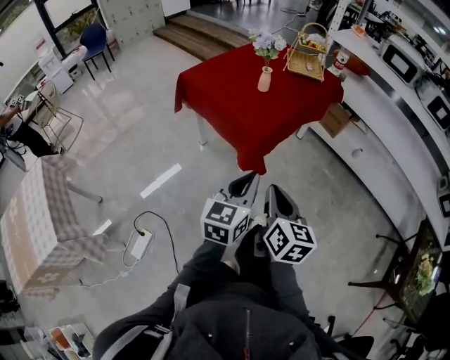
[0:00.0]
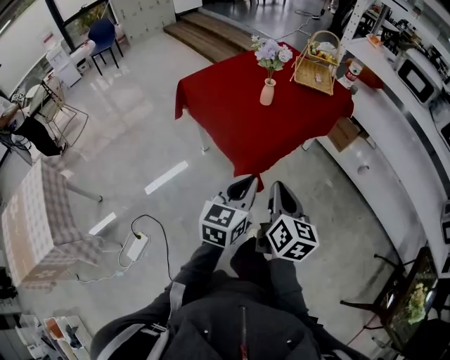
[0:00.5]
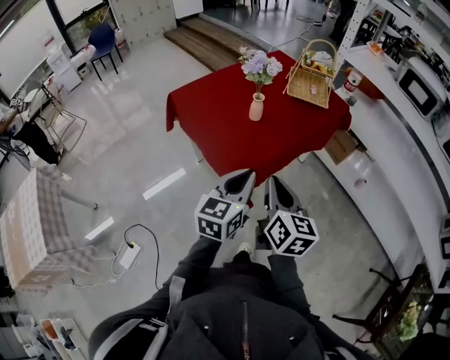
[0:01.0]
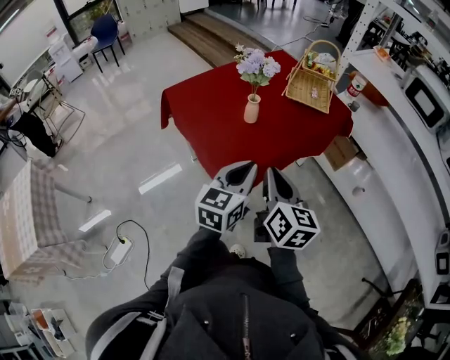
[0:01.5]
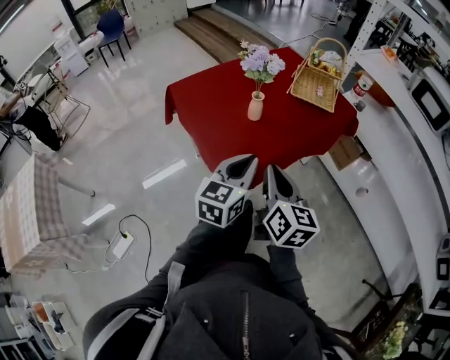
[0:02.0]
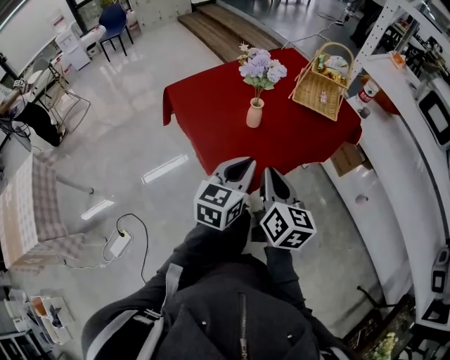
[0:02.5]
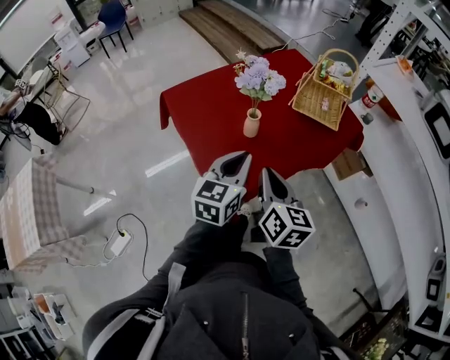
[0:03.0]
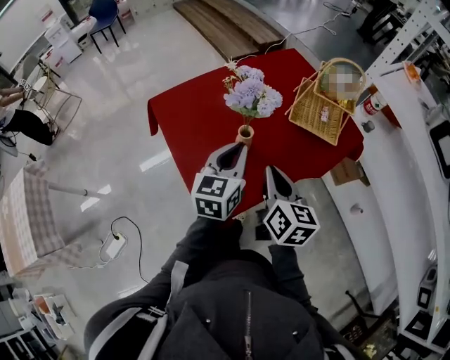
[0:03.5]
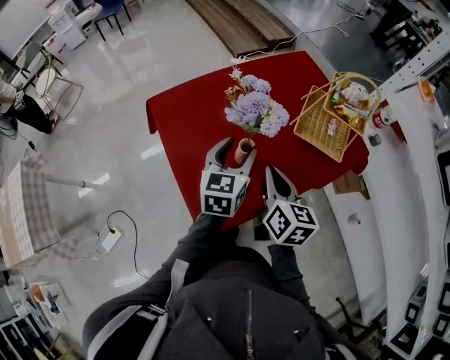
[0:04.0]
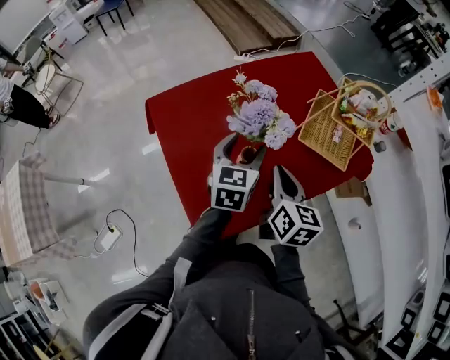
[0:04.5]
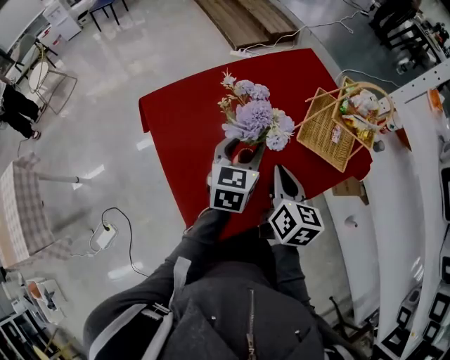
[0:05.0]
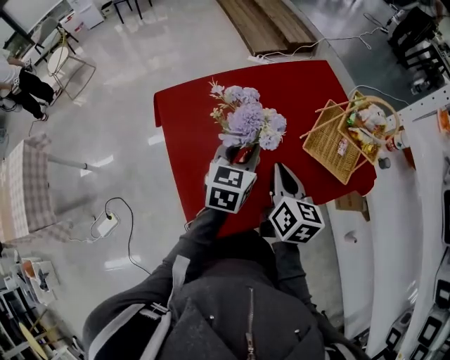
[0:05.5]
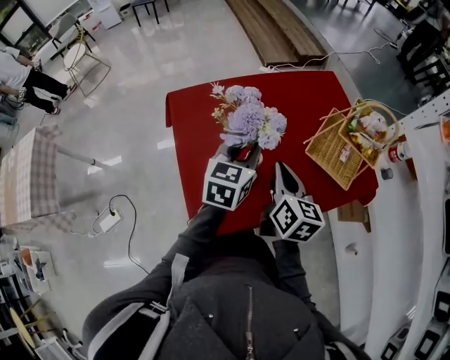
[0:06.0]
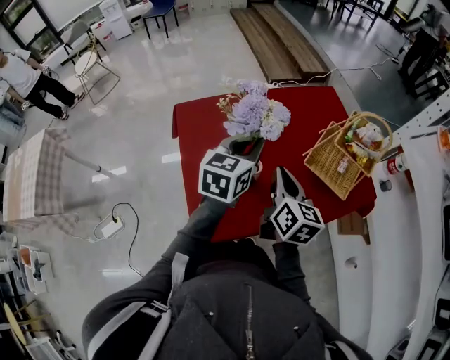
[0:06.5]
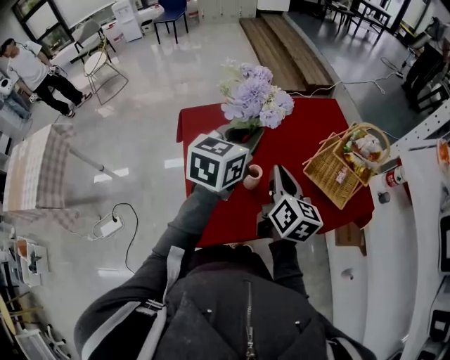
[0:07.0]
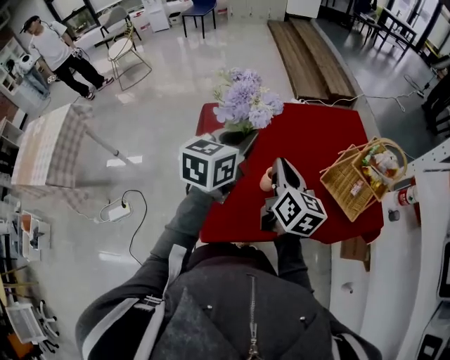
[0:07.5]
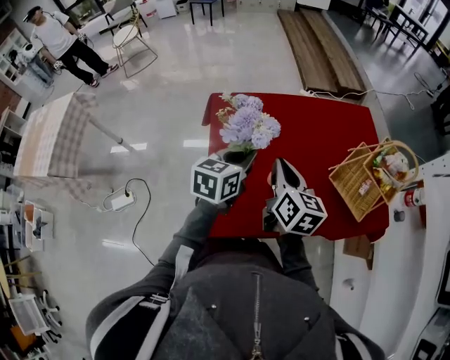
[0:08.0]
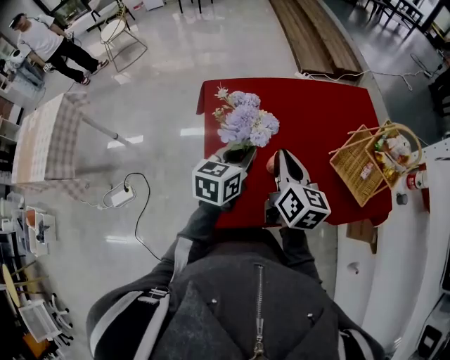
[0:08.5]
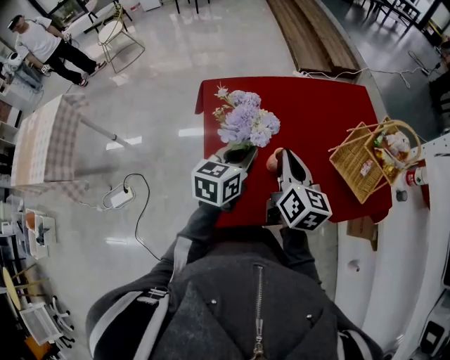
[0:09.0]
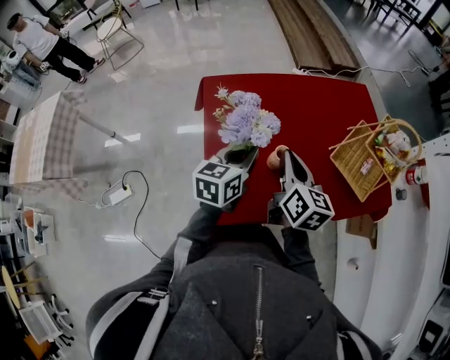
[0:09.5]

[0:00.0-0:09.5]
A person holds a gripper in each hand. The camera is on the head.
0.0 to 2.0 s: The two grippers go roughly 25 cm forward.
2.0 to 4.0 s: Both grippers travel together forward, roughly 25 cm. The left gripper opens up.
4.0 to 5.5 s: The left gripper changes place by some 5 cm, and closes, while the right gripper heads forward, covering roughly 5 cm.
5.5 to 7.5 s: The right gripper moves to the left and upward, roughly 10 cm, while the left gripper travels upward and to the left by some 15 cm.
7.5 to 9.5 s: The left gripper shifts some 15 cm downward.

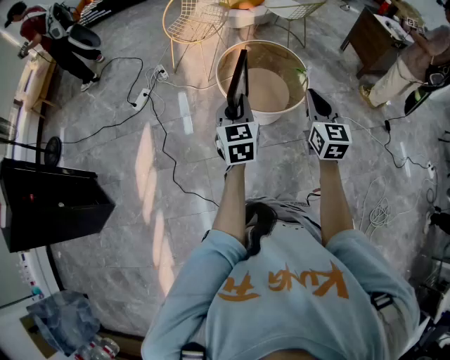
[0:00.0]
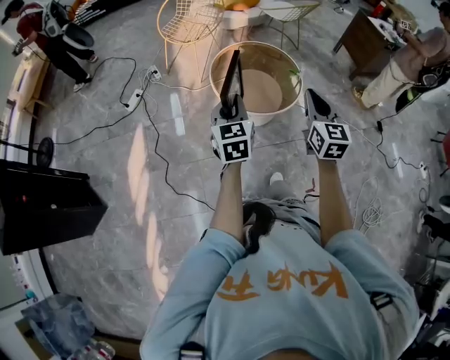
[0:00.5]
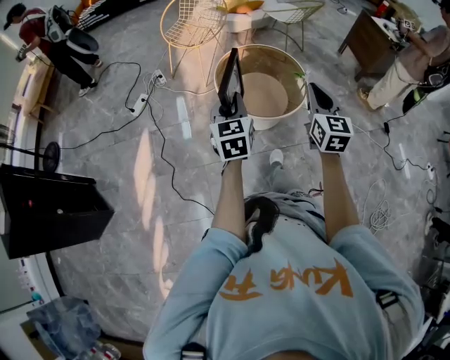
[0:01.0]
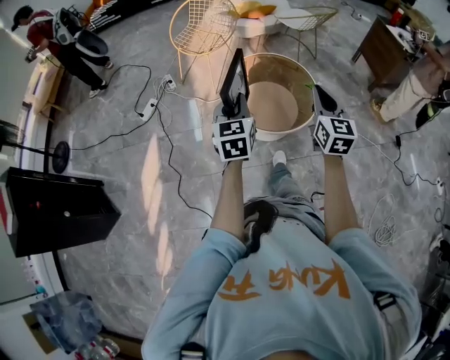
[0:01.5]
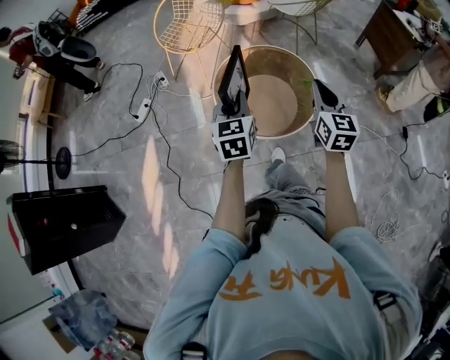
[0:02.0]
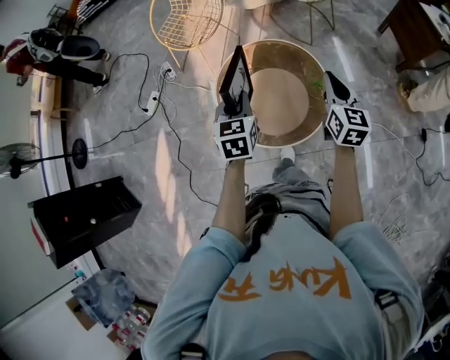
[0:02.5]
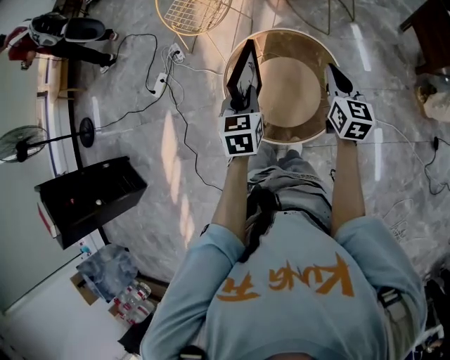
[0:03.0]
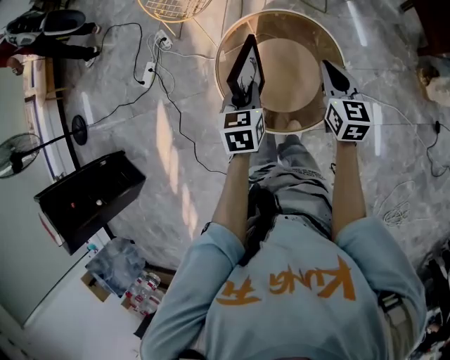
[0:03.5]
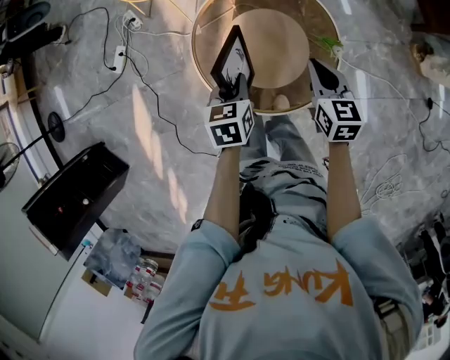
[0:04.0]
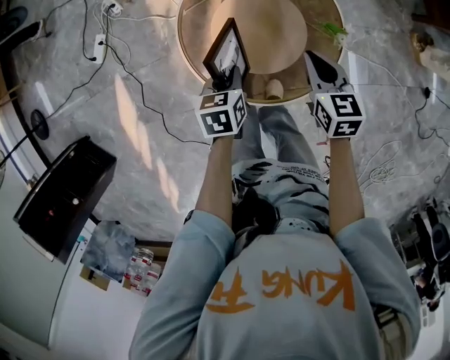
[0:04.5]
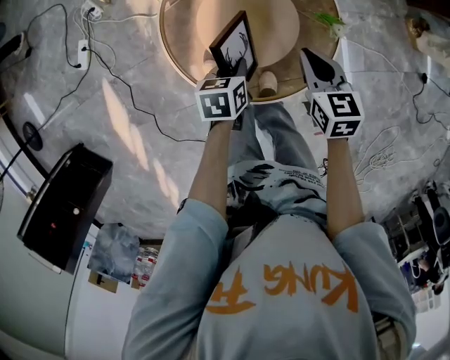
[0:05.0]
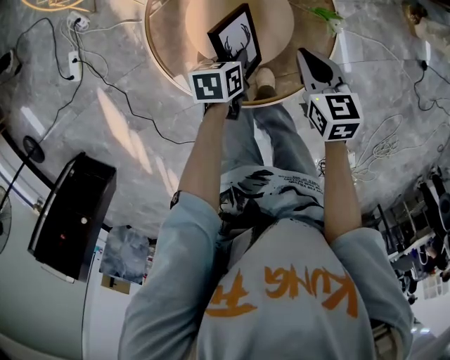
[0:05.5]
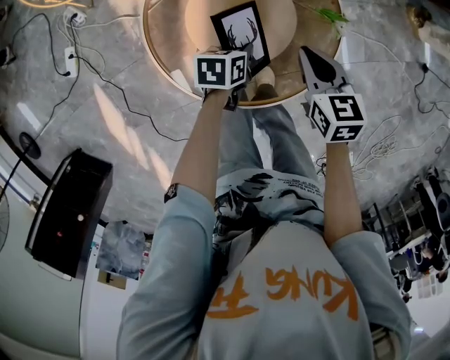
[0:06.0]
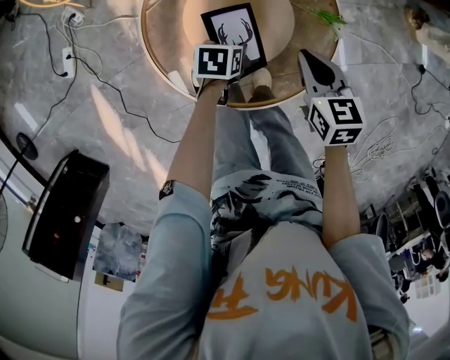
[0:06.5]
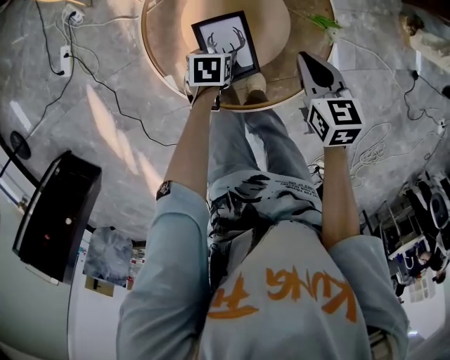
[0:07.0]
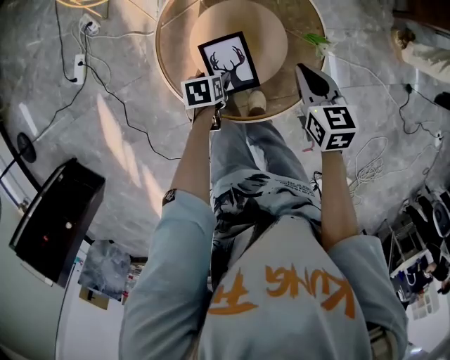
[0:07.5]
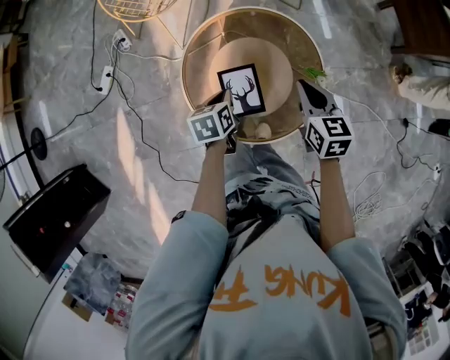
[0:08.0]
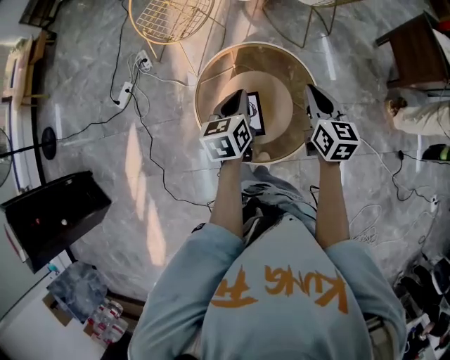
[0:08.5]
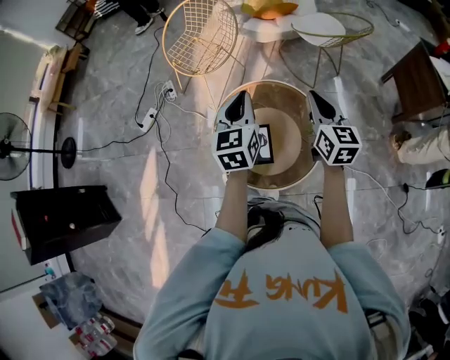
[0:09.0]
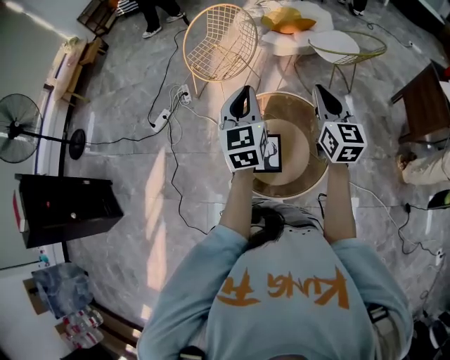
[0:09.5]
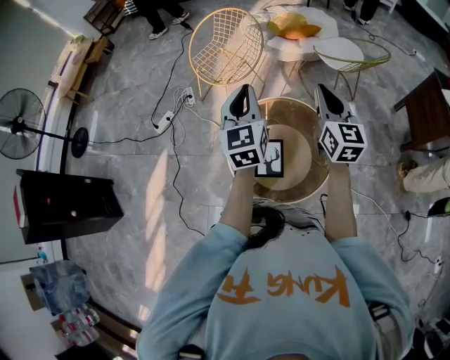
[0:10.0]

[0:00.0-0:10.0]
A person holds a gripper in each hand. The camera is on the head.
0.0 to 2.0 s: The grippers both shift forward by some 25 cm.
2.0 to 4.0 s: The two grippers go some 30 cm downward and forward. The left gripper changes its angle by some 30 degrees, while the right gripper changes its angle by about 30 degrees.
4.0 to 6.0 s: The left gripper is displaced downward by some 25 cm, and rotates roughly 30 degrees. Meanwhile the right gripper goes roughly 15 cm downward.
6.0 to 8.0 s: The left gripper travels upward and to the left by roughly 20 cm, rotates about 30 degrees, and opens, then closes once more. The right gripper goes some 15 cm upward.
8.0 to 10.0 s: The two grippers go approximately 35 cm upward. The right gripper tilts its fingers about 30 degrees upward; the left gripper angles its fingers upward, by approximately 50 degrees.

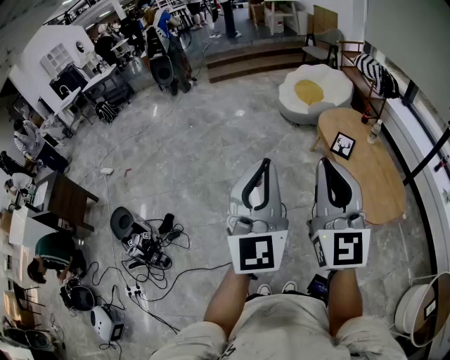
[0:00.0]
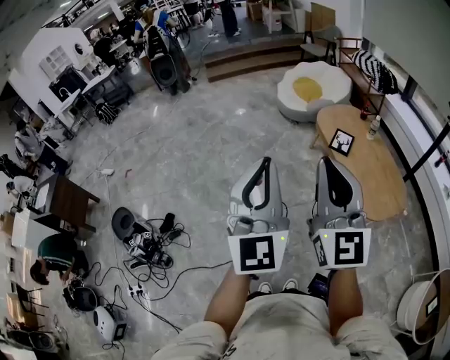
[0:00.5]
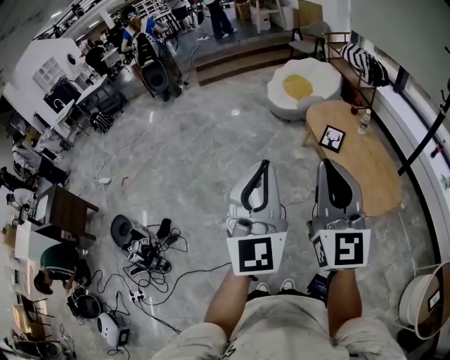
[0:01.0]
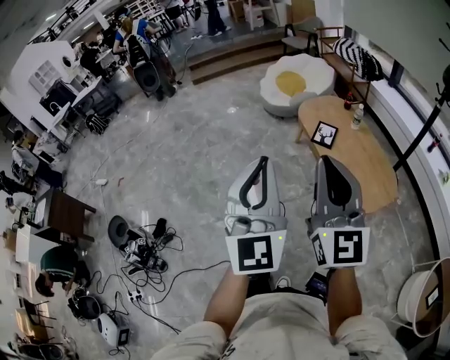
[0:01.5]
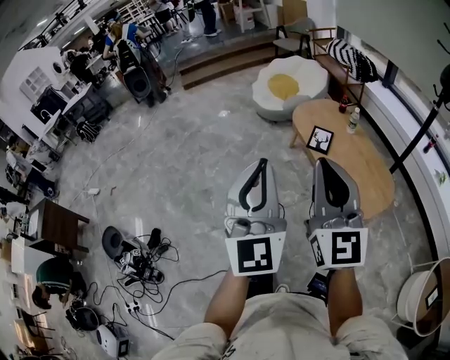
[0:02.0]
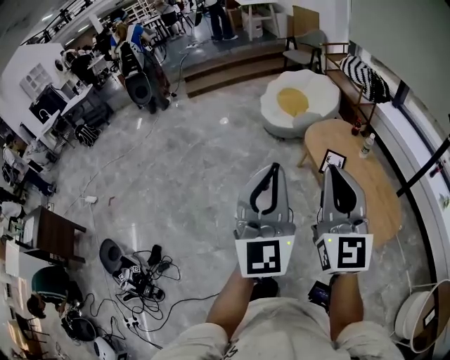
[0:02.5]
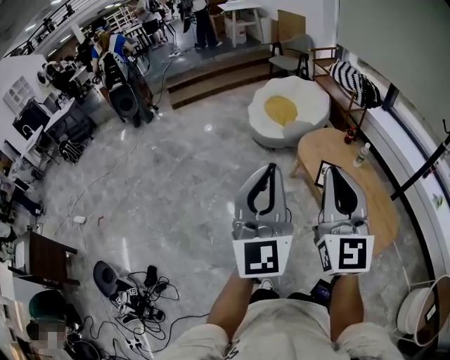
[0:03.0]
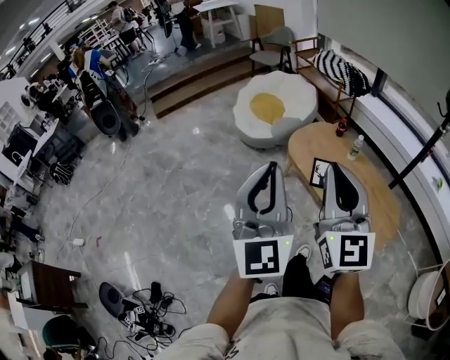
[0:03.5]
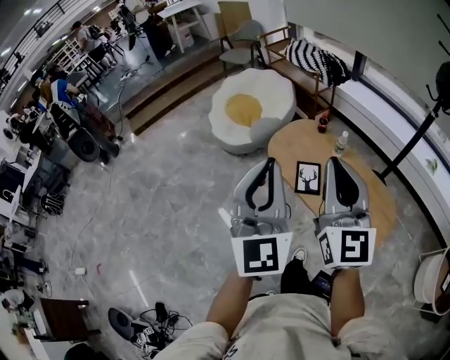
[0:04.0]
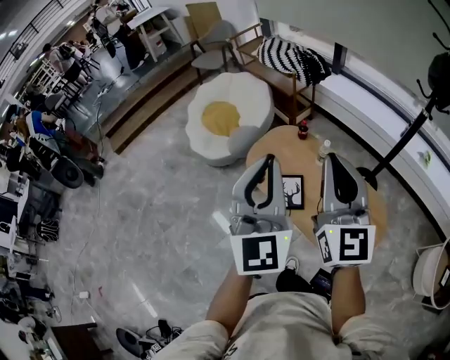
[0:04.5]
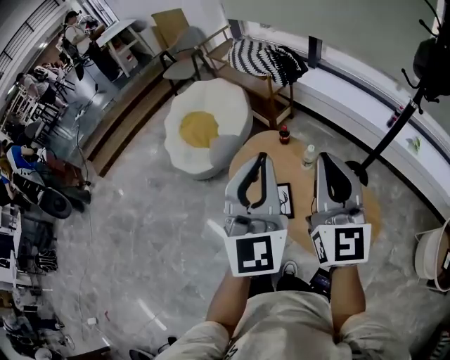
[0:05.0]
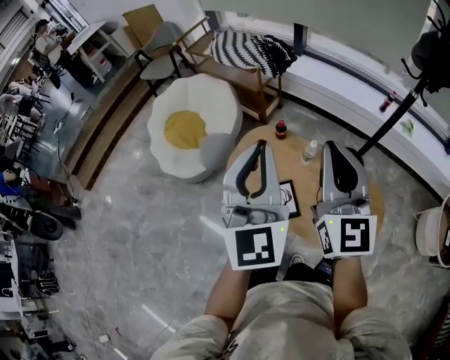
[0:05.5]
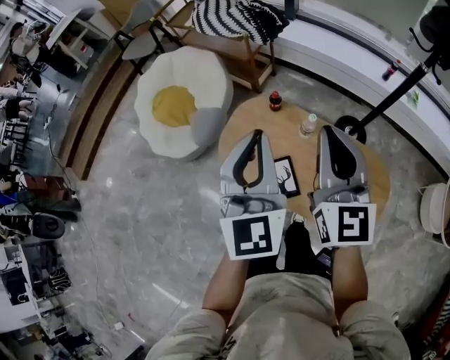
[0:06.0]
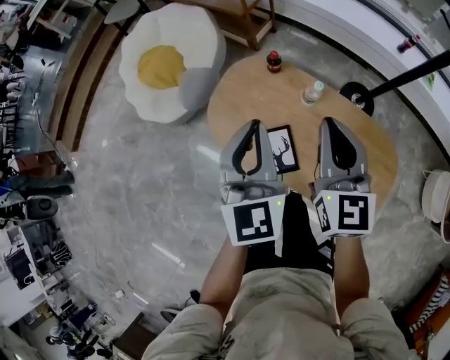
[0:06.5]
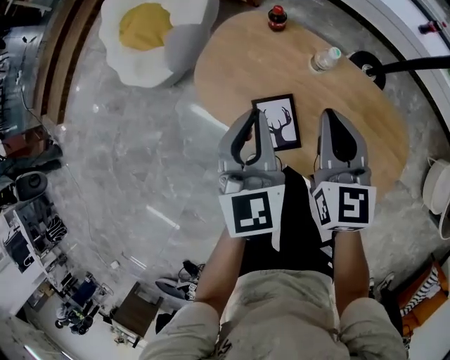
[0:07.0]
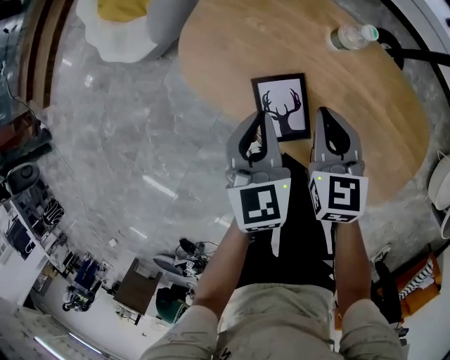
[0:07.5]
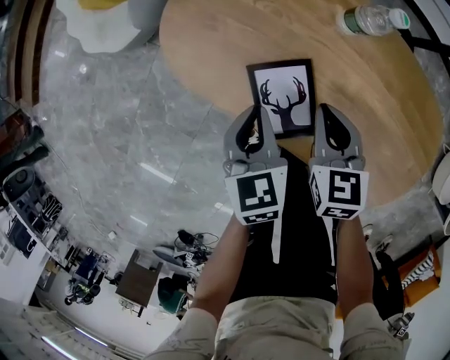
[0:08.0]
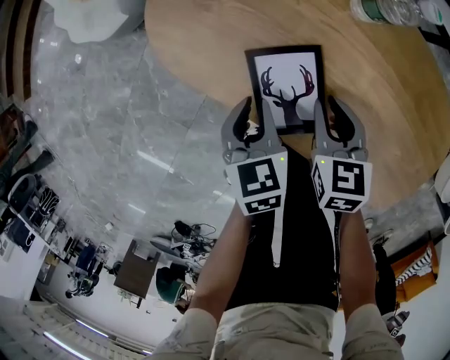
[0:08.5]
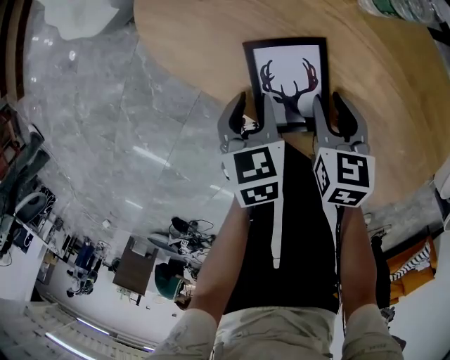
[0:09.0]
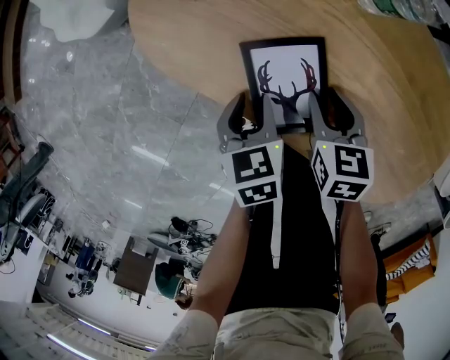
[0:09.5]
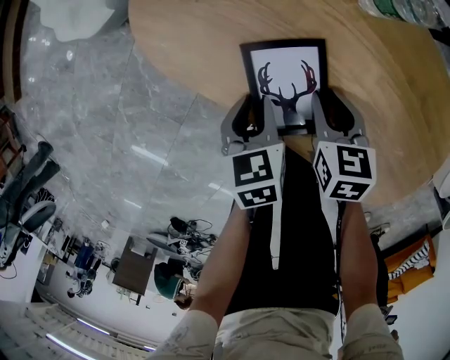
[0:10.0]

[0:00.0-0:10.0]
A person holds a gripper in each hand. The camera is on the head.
0.0 to 2.0 s: The grippers both shift to the right and forward by roughly 15 cm.
2.0 to 4.0 s: The two grippers go some 40 cm forward. The left gripper rotates approximately 20 degrees. Meanwhile the right gripper rotates some 20 degrees.
4.0 to 6.0 s: Both grippers move forward, roughly 40 cm. The right gripper swivels roughly 20 degrees; the left gripper rotates roughly 20 degrees.
6.0 to 8.0 s: Both grippers move downward, some 50 cm. The left gripper points its fingers roughly 40 degrees further downward; the right gripper tips its fingers downward by approximately 40 degrees.
8.0 to 10.0 s: The grippers both shift downward by roughly 10 cm. The left gripper opens its fingers. Meanwhile the right gripper opens up.
